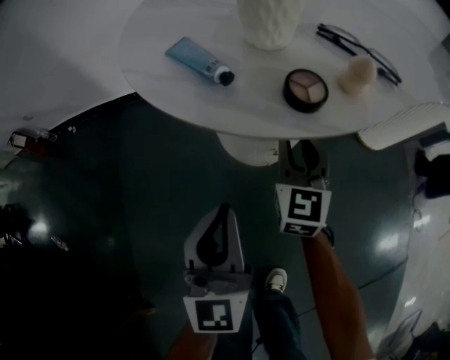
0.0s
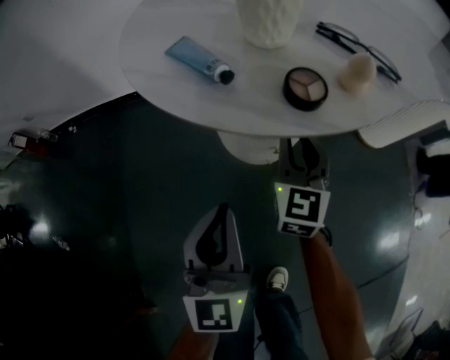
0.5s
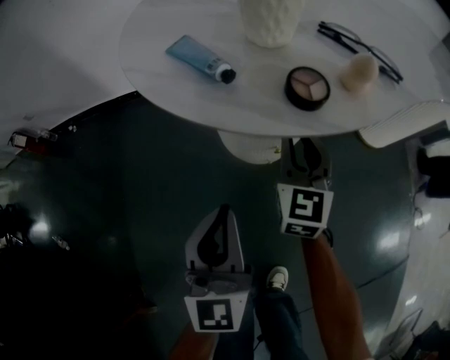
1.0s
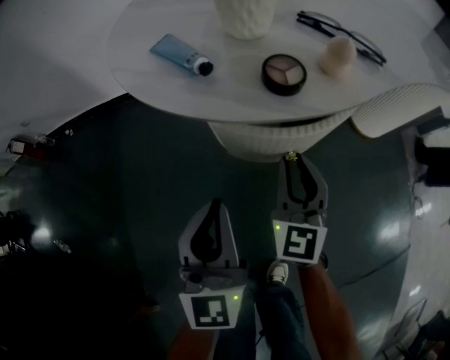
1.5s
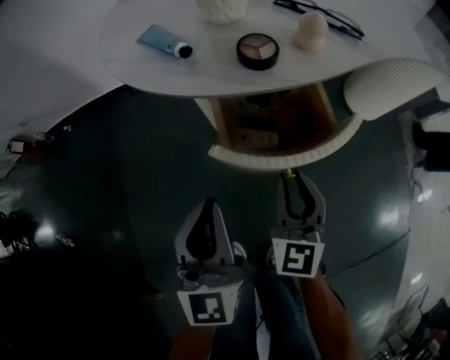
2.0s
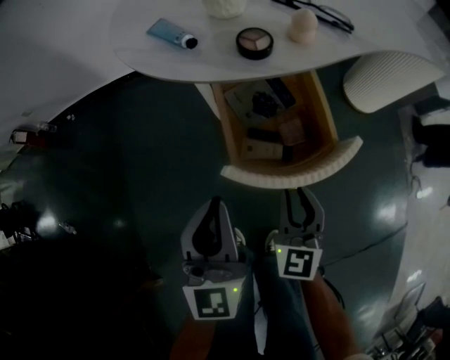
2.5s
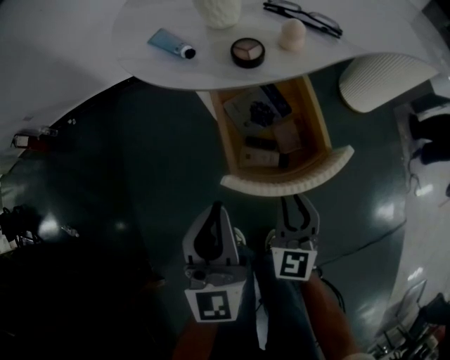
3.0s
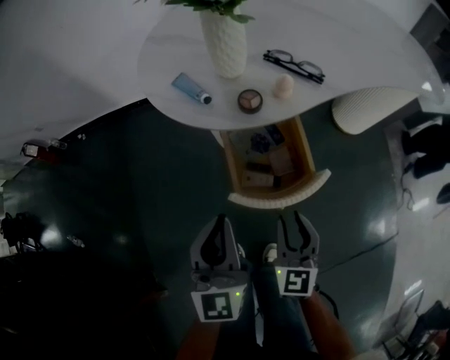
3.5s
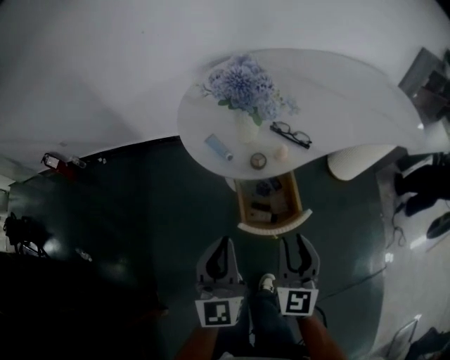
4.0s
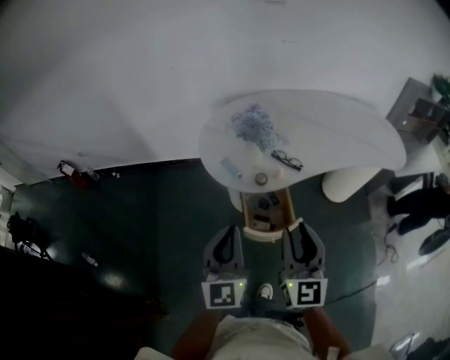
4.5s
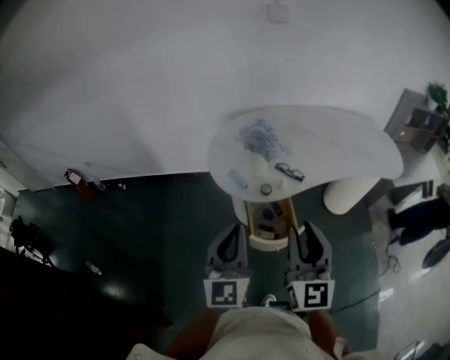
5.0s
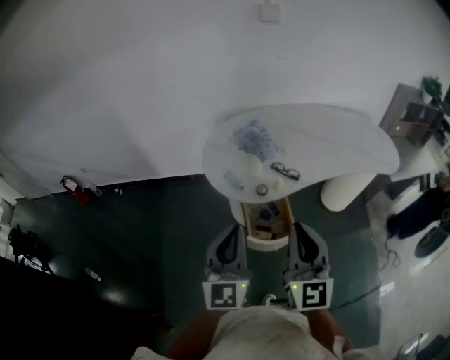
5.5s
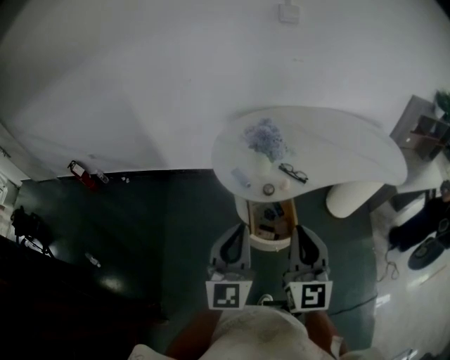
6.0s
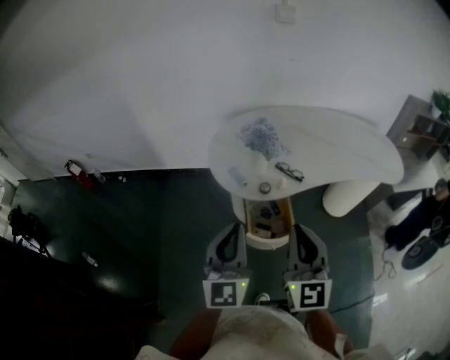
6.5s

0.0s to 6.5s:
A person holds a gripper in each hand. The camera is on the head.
0.0s to 2.0s: The right gripper moves backward, approximately 15 cm; the left gripper shifts by approximately 5 cm.
2.0s to 4.5s: The two grippers go roughly 35 cm upward.
4.5s to 6.5s: The two grippers go approximately 5 cm upward. The right gripper closes its fingers.

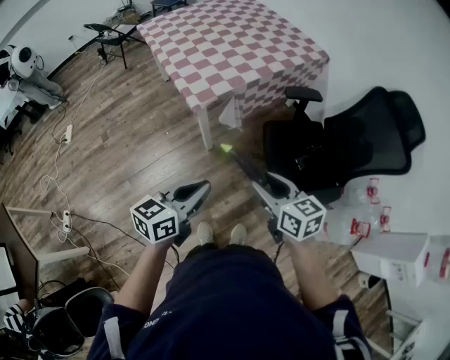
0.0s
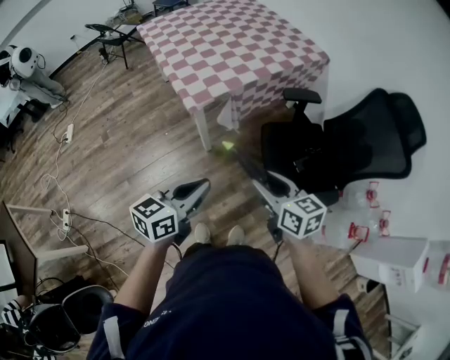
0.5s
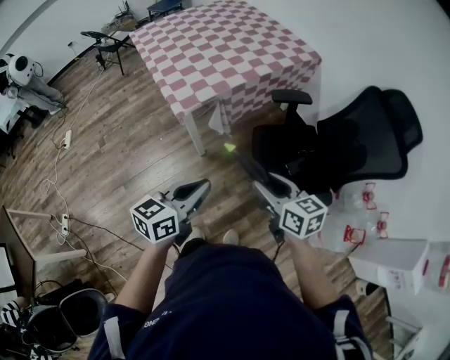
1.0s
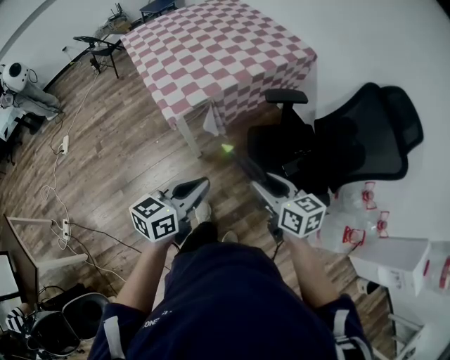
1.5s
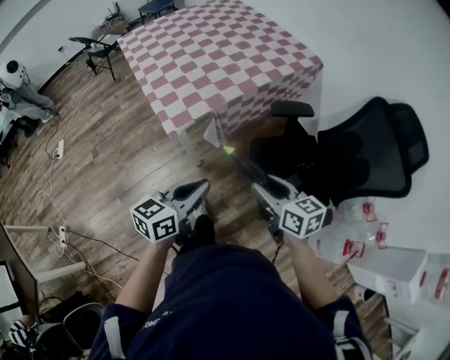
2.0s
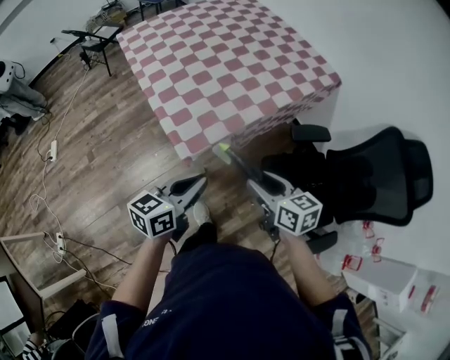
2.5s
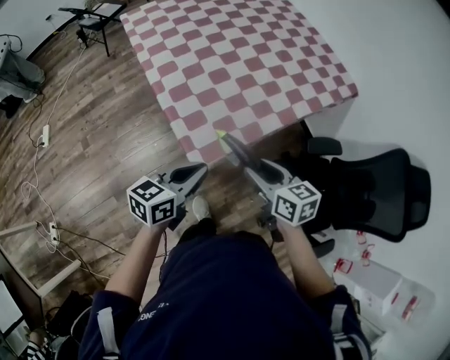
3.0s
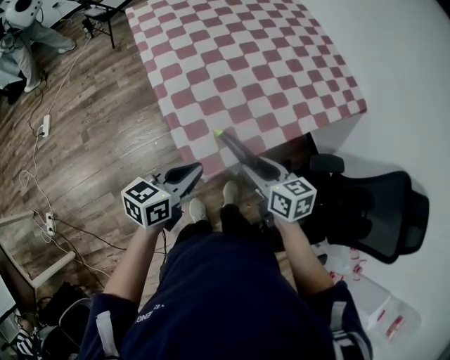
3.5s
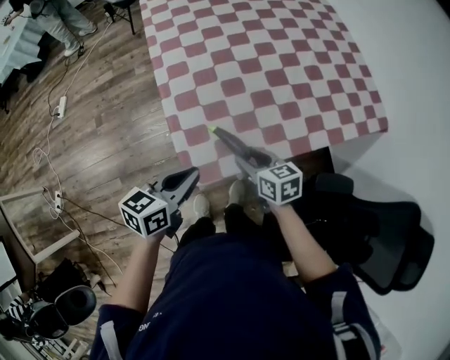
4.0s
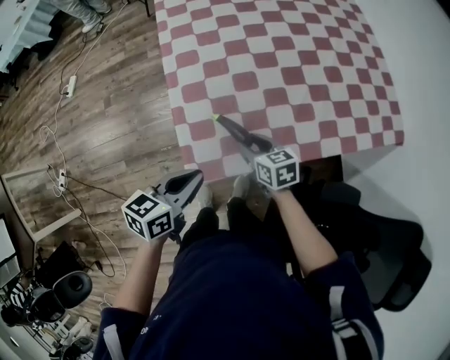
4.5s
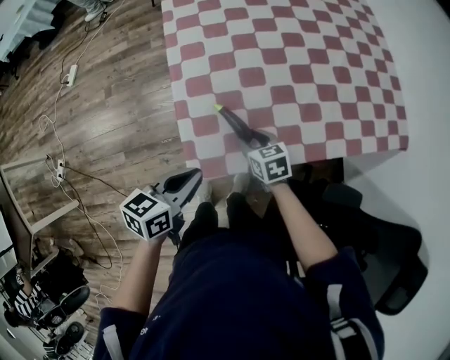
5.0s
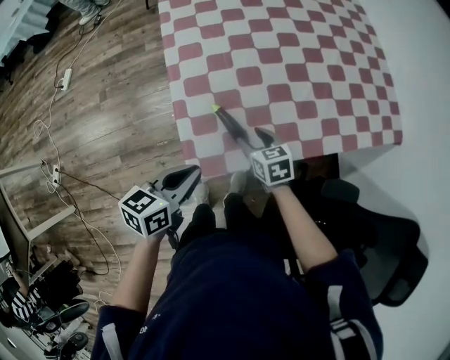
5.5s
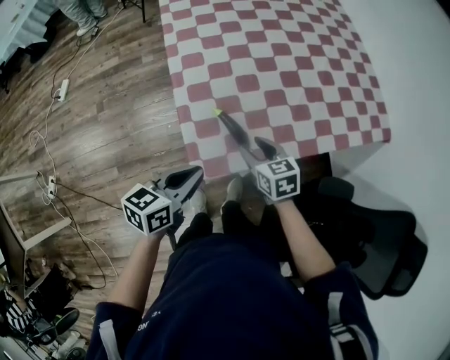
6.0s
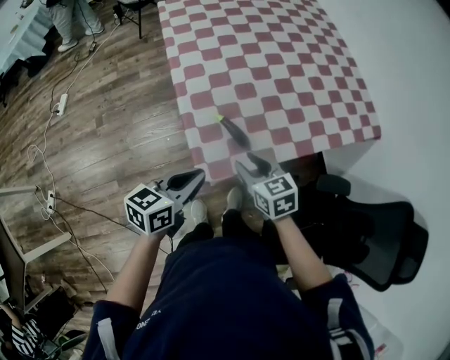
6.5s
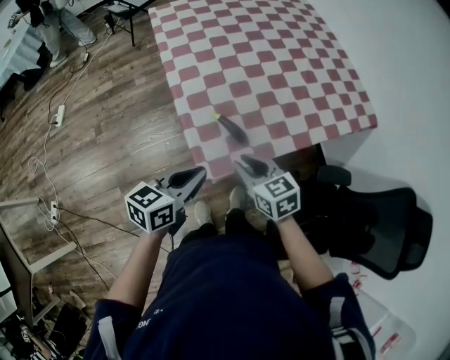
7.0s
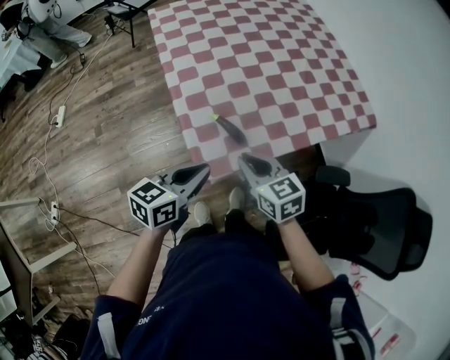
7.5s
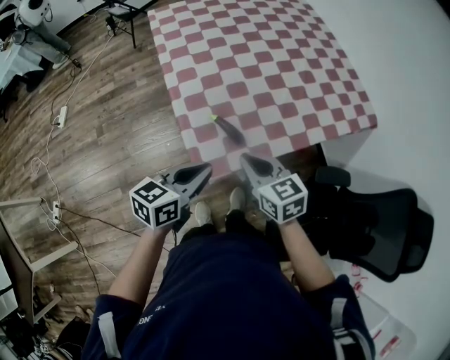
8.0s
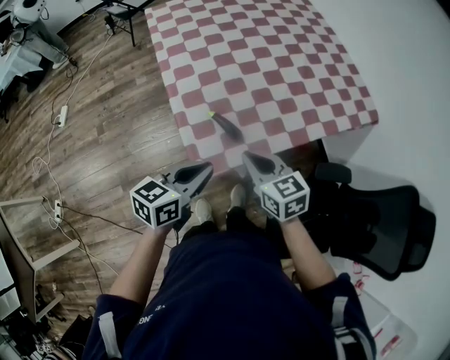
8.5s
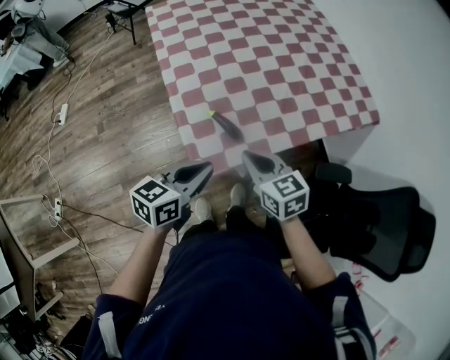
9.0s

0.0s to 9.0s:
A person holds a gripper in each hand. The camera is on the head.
0.0s to 2.0s: The two grippers go roughly 15 cm forward and to the right.
2.0s to 4.5s: The two grippers go about 40 cm forward, downward and to the left. The right gripper swivels roughly 30 degrees, while the left gripper changes its angle by about 30 degrees.
4.5s to 7.0s: The right gripper travels upward, backward and to the left by approximately 15 cm, and closes; the left gripper heads upward, covering approximately 5 cm.
7.0s to 9.0s: The grippers stay close to where they were, moving slightly.

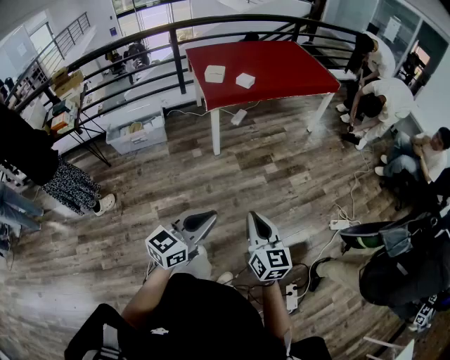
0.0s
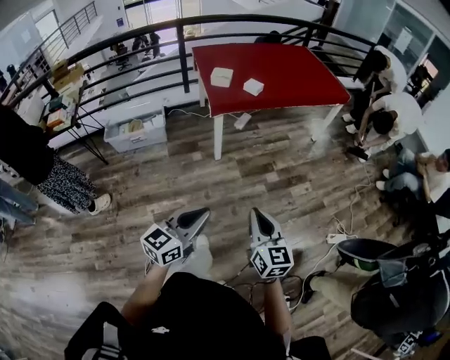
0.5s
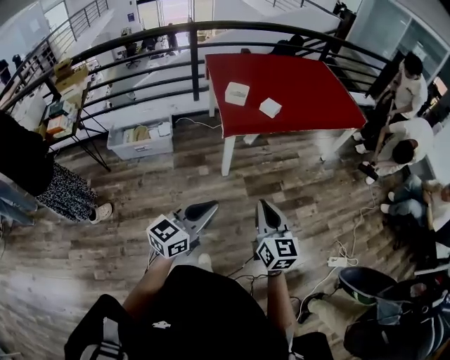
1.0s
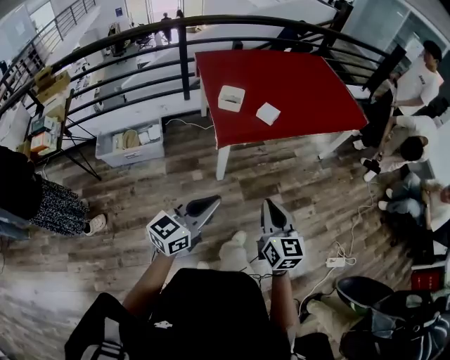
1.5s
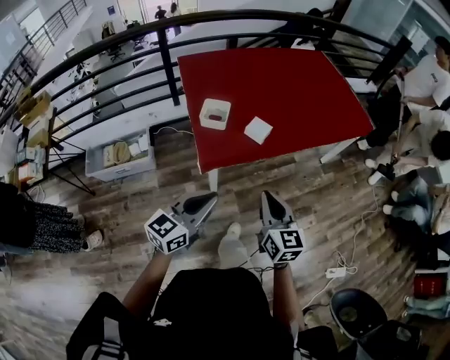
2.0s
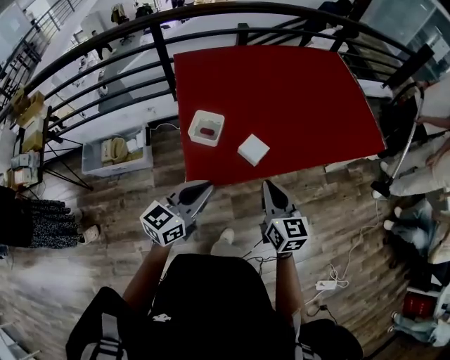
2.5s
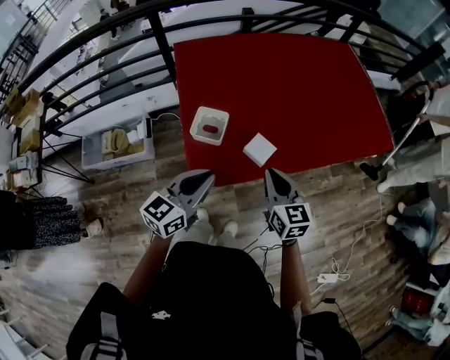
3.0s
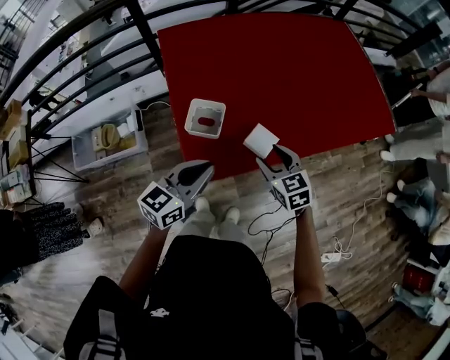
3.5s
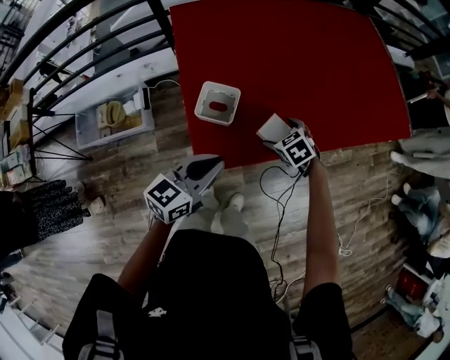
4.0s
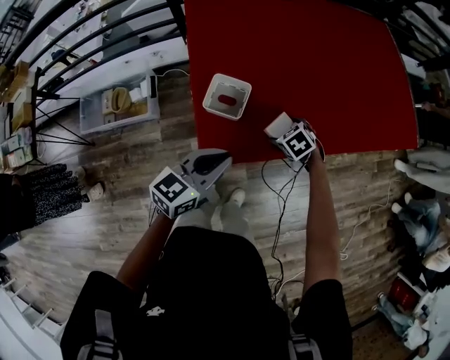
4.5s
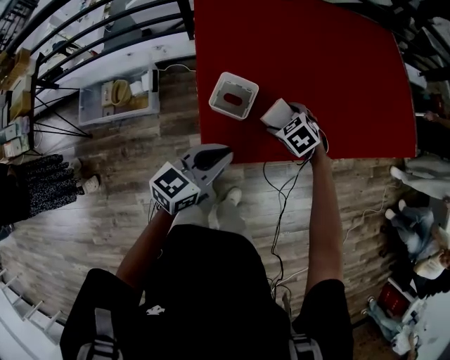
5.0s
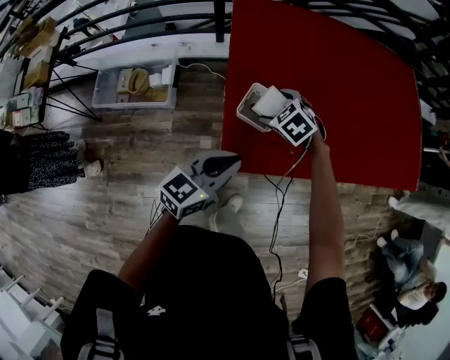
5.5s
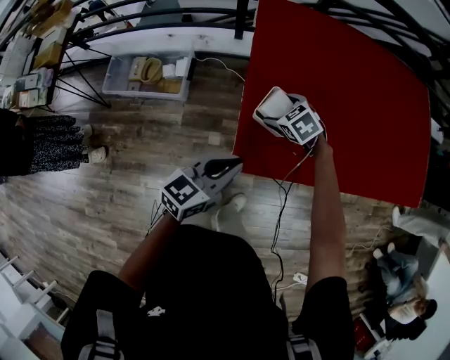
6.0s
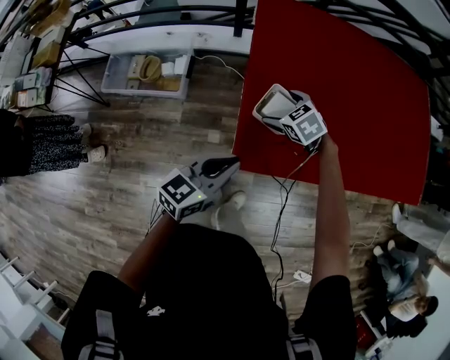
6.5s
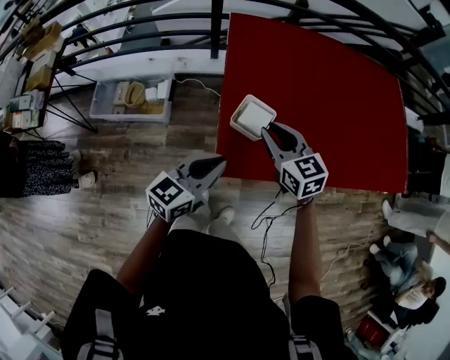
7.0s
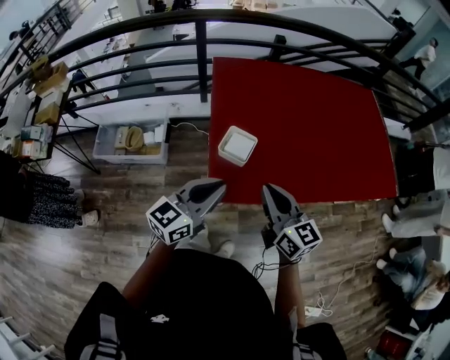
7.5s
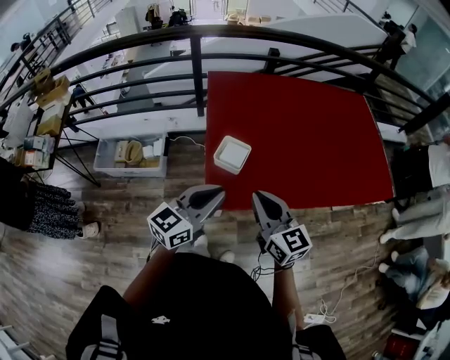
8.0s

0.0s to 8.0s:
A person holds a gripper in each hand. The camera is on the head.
0.0s to 2.0s: The two grippers travel together, forward, about 60 cm.
2.0s to 4.0s: The left gripper travels forward by approximately 30 cm, while the right gripper travels forward and downward by some 40 cm, angles its fingers downward, by roughly 50 degrees, and opens up.
4.0s to 6.0s: The right gripper goes about 20 cm to the left, and swivels approximately 20 degrees. Meanwhile the left gripper is displaced to the left by approximately 10 cm.
6.0s to 8.0s: The left gripper goes about 15 cm upward, backward and to the right. Meanwhile the right gripper heads upward and backward, covering some 35 cm, tips its fingers upward by some 50 degrees, and closes its fingers.
